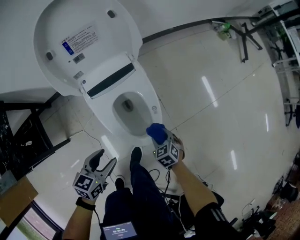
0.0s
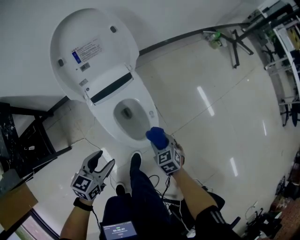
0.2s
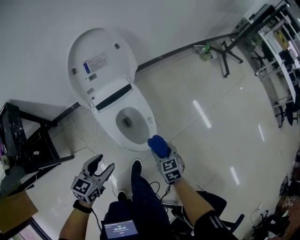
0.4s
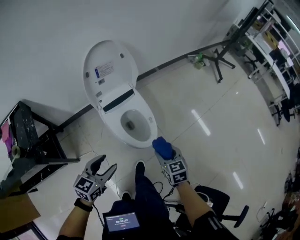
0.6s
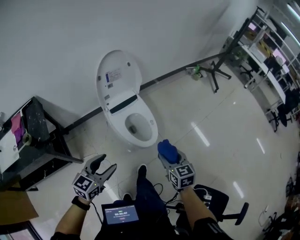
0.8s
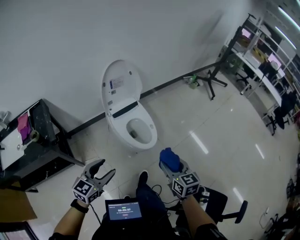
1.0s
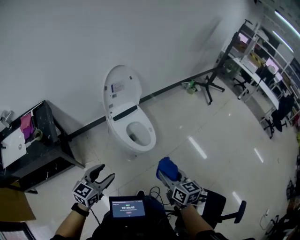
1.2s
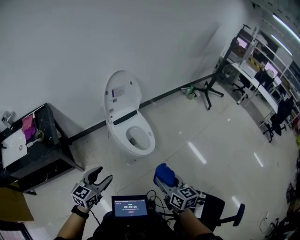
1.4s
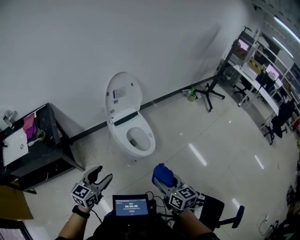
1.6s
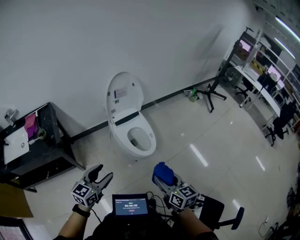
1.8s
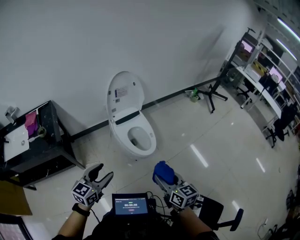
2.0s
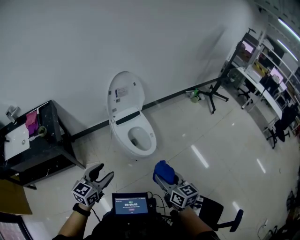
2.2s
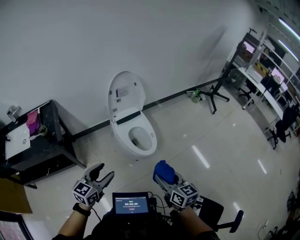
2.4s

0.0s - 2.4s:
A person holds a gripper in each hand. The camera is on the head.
0.0s - 1.2s: Both grippers travel together upward and backward, approximately 60 cm. The right gripper points its fingers approximately 40 degrees further upward. The left gripper changes its angle by approximately 30 degrees.
1.2s - 2.4s: There are only small adjustments of the grippers.

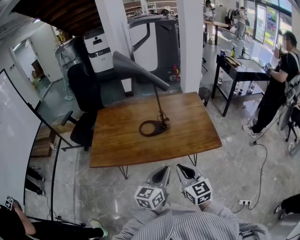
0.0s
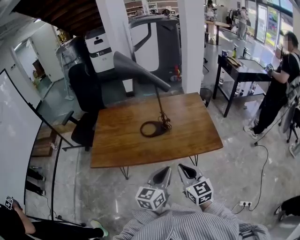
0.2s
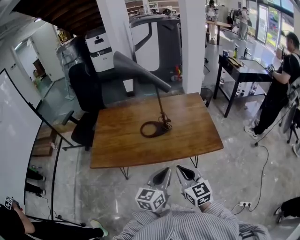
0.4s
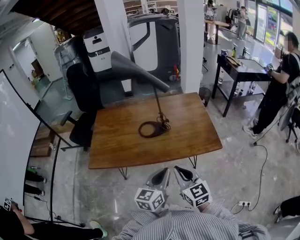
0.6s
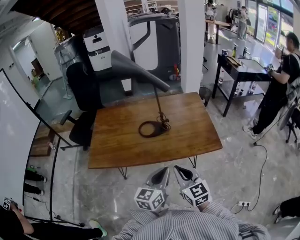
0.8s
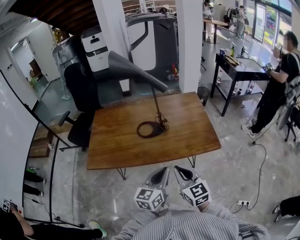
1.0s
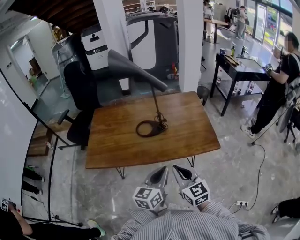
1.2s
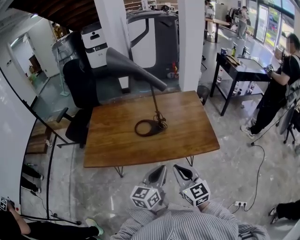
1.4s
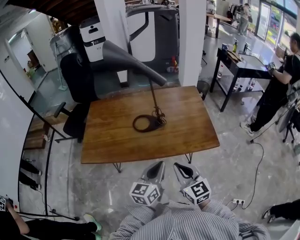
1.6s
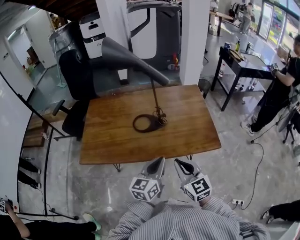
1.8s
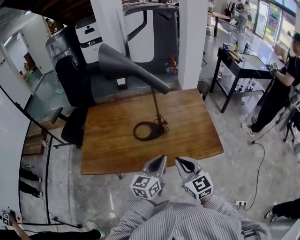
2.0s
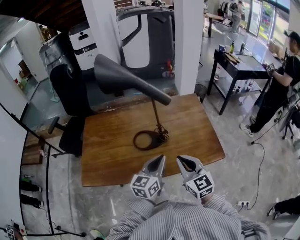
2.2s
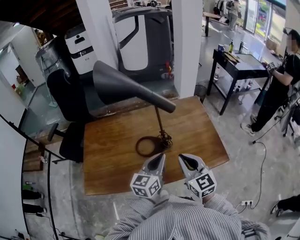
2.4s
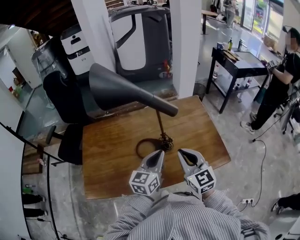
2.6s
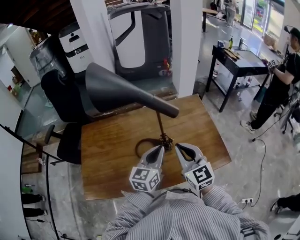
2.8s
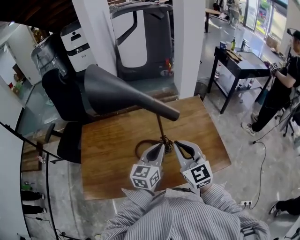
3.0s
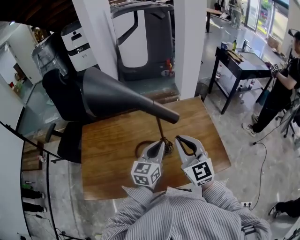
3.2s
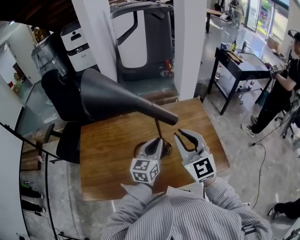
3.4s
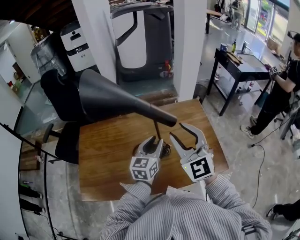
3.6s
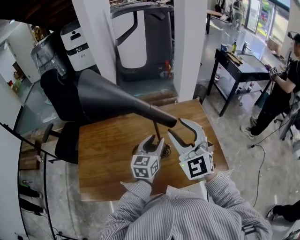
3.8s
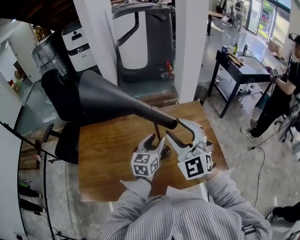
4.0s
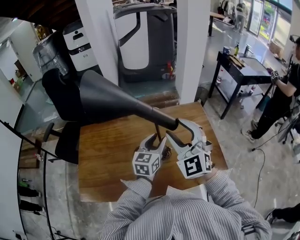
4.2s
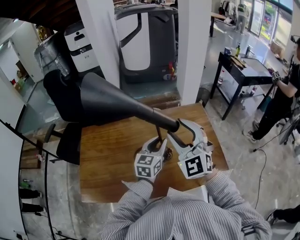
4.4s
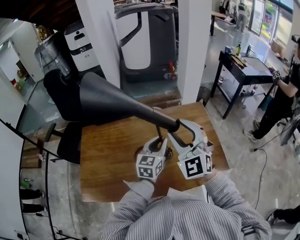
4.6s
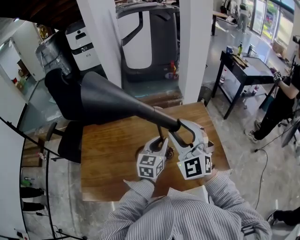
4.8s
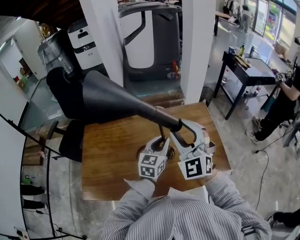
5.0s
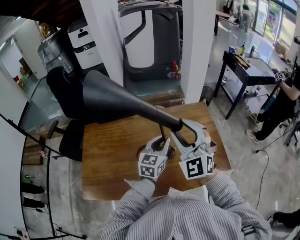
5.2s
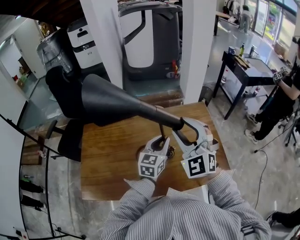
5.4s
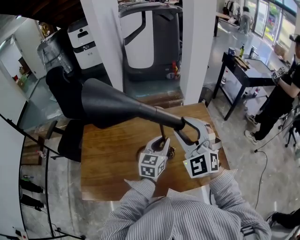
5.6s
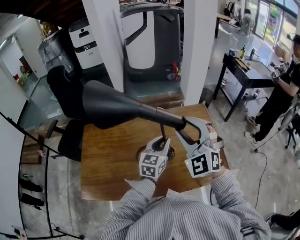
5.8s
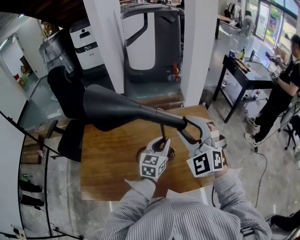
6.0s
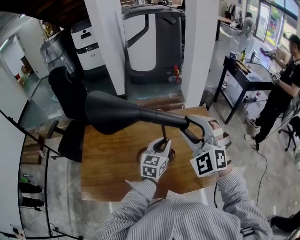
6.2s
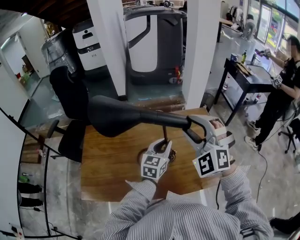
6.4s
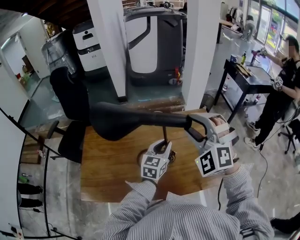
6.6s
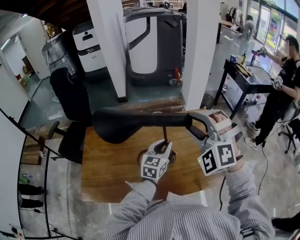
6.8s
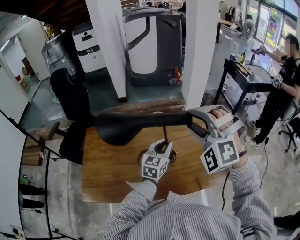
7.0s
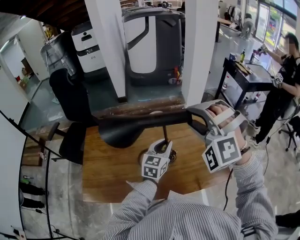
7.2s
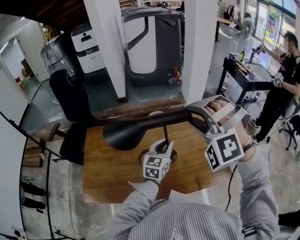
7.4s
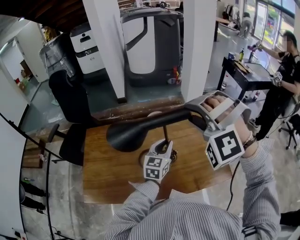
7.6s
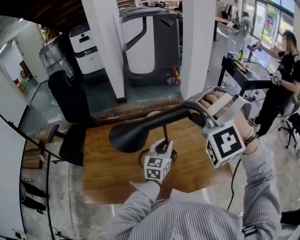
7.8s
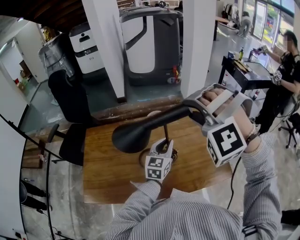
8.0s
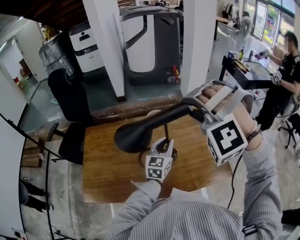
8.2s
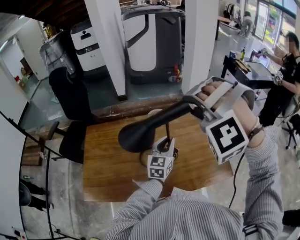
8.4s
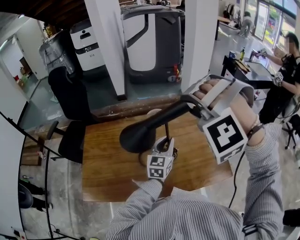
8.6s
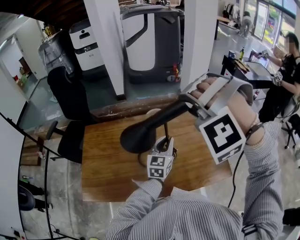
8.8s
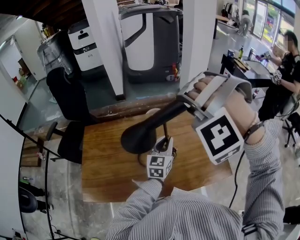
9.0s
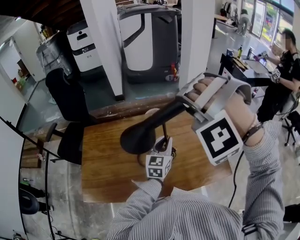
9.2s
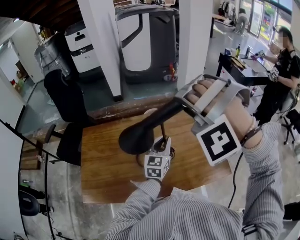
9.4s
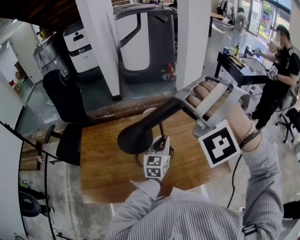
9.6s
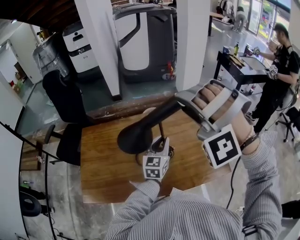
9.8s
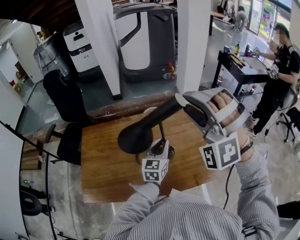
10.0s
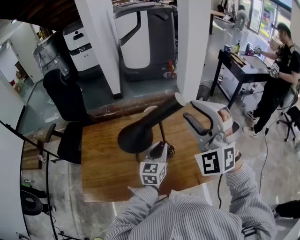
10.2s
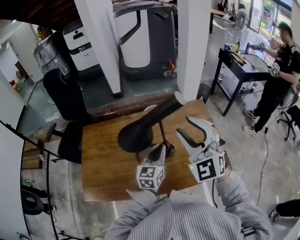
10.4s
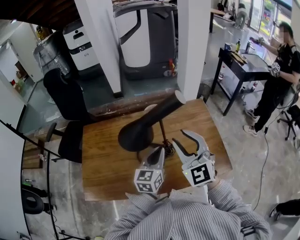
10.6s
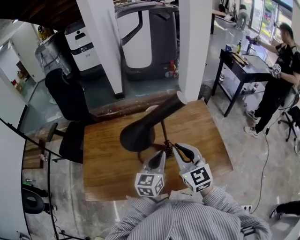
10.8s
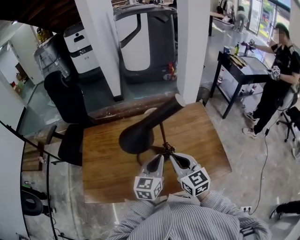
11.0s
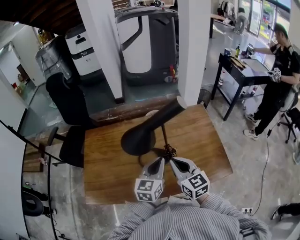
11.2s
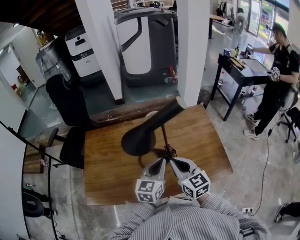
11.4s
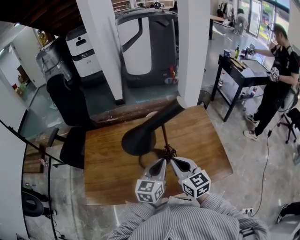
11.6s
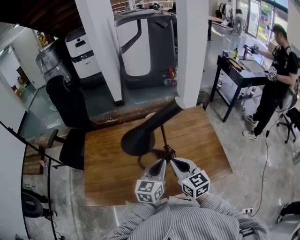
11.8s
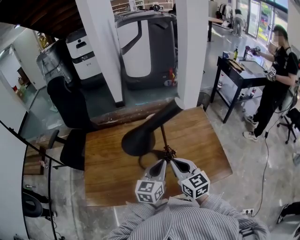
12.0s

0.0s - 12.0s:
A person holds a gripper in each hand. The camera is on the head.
0.0s - 1.6s: The grippers make only small movements.
1.6s - 3.0s: Both grippers move forward, approximately 25 cm.
3.0s - 4.4s: The left gripper shifts approximately 10 cm forward, and opens, while the right gripper shifts roughly 10 cm upward and forward, turns by about 30 degrees, and opens up.
4.4s - 6.0s: The grippers stay close to where they were, moving slightly.
6.0s - 7.6s: The right gripper goes some 5 cm upward, and twists about 40 degrees counterclockwise, seen from behind.
7.6s - 9.0s: There are only small adjustments of the grippers.
9.0s - 10.4s: The left gripper travels backward by approximately 5 cm, while the right gripper goes about 5 cm downward, and rolls clockwise, seen from behind, by approximately 70 degrees.
10.4s - 12.0s: The right gripper goes roughly 15 cm downward, twists some 50 degrees clockwise, seen from behind, and closes up, while the left gripper shifts approximately 5 cm backward.

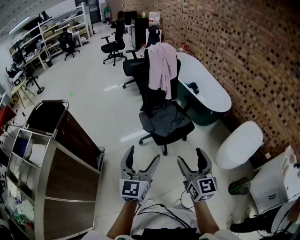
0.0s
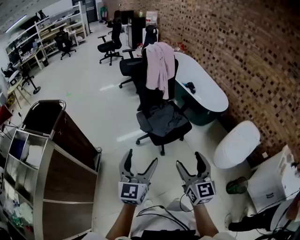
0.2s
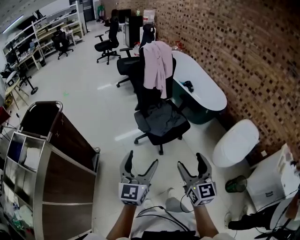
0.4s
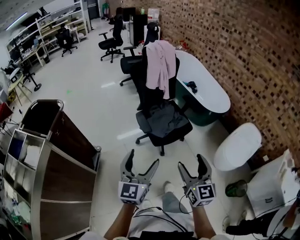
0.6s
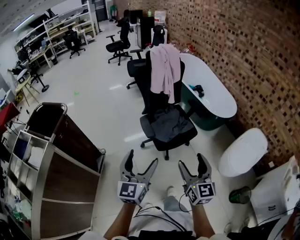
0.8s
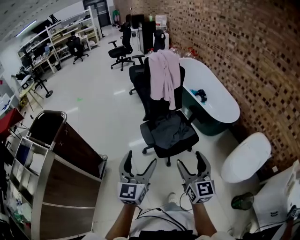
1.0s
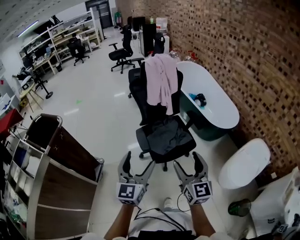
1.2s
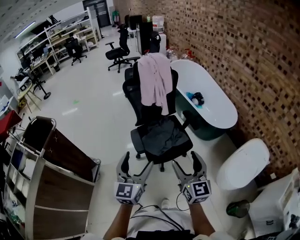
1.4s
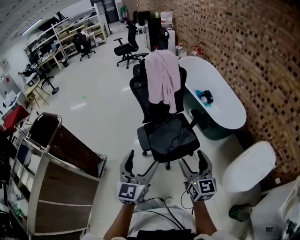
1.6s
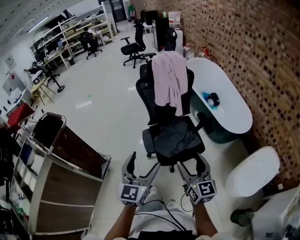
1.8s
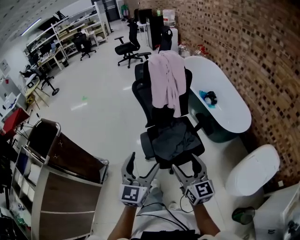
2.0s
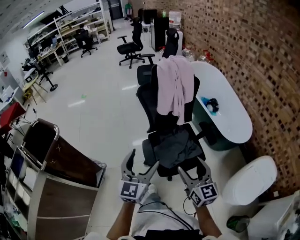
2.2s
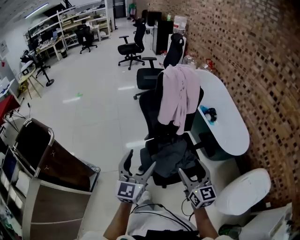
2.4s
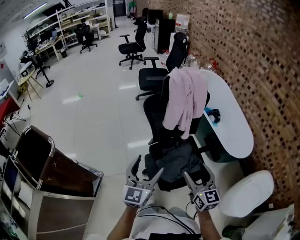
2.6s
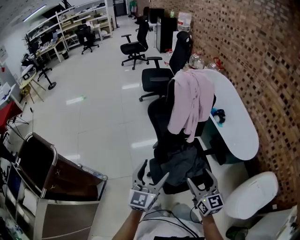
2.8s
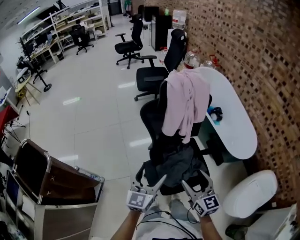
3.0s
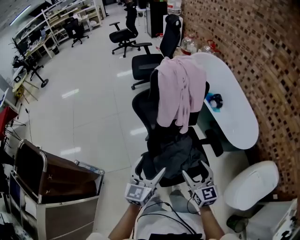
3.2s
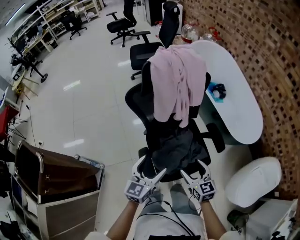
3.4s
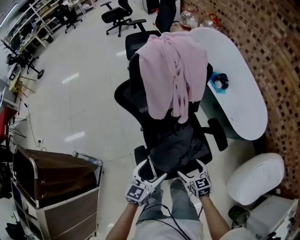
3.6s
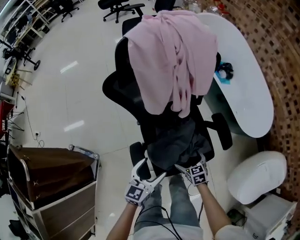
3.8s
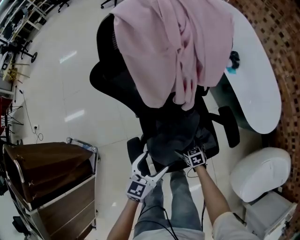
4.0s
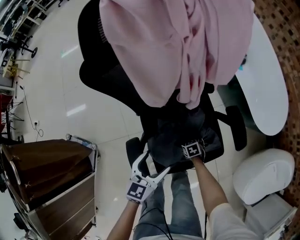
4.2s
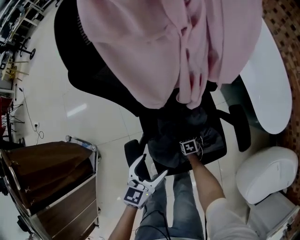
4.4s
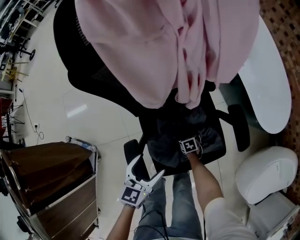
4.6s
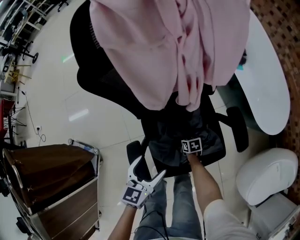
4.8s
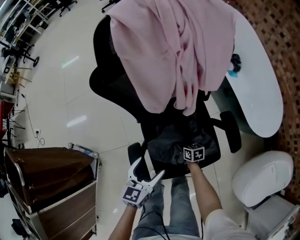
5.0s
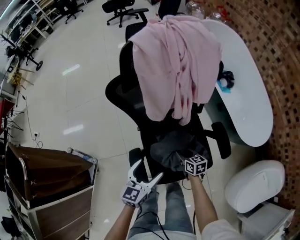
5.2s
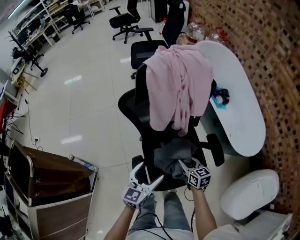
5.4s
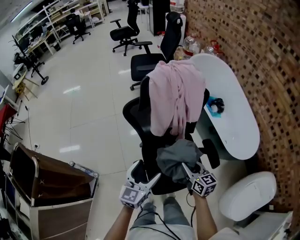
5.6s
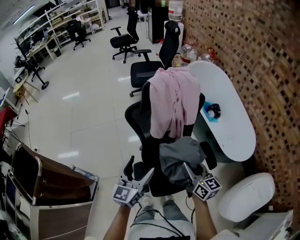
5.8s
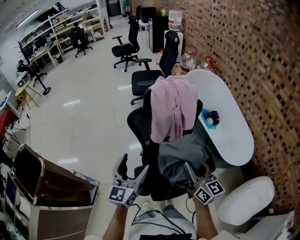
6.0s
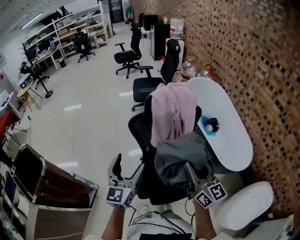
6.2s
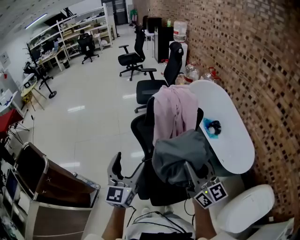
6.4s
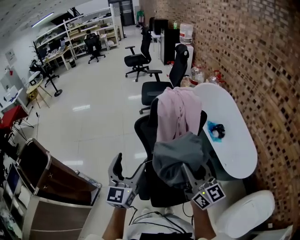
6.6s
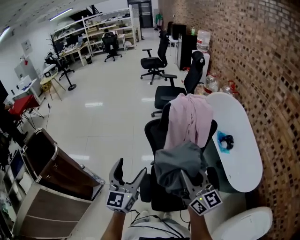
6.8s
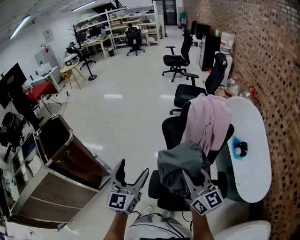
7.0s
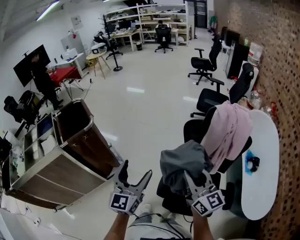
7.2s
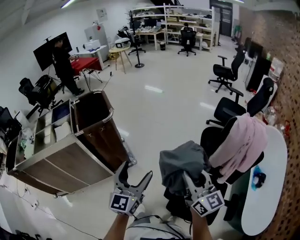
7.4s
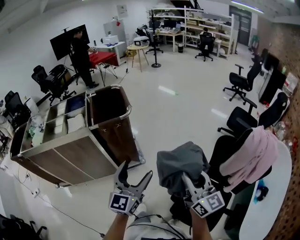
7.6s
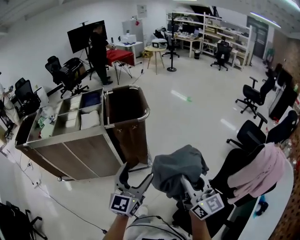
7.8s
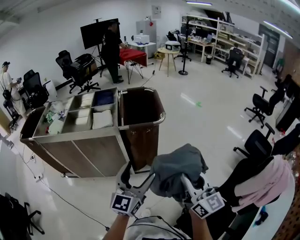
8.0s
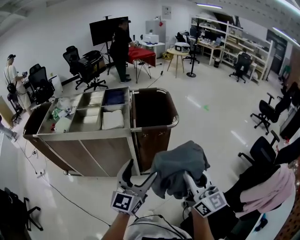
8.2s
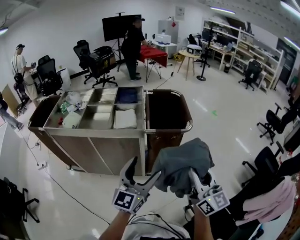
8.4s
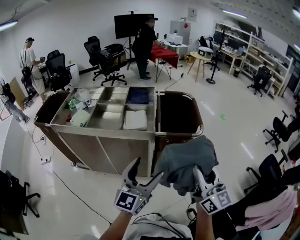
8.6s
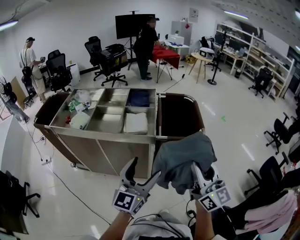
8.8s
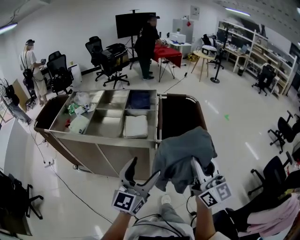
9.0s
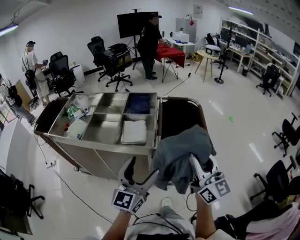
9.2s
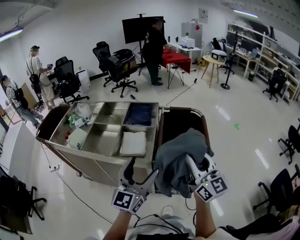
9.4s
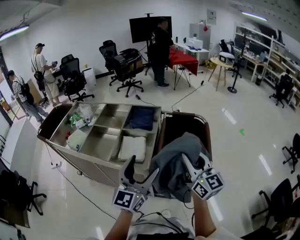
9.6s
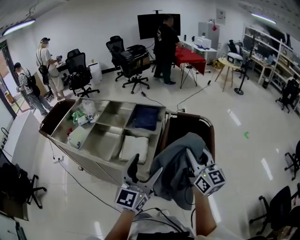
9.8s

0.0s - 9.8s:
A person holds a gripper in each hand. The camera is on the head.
0.0s - 1.4s: Both grippers travel together forward and to the right, some 20 cm.
1.4s - 2.8s: The grippers both shift forward by about 30 cm.
2.8s - 4.2s: The left gripper is displaced downward by about 30 cm, and swivels about 30 degrees; the right gripper is displaced downward by roughly 60 cm, tips its fingers downward by roughly 60 degrees, and opens its fingers.
4.2s - 5.6s: The right gripper heads upward, covering about 50 cm, angles its fingers upward, by roughly 50 degrees, and closes its fingers; the left gripper goes some 25 cm upward.
5.6s - 7.0s: The grippers both shift upward by some 20 cm. The left gripper changes its angle by some 40 degrees; the right gripper swivels approximately 30 degrees.
7.0s - 8.4s: The pair of grippers is taken about 50 cm. The right gripper swivels roughly 50 degrees, while the left gripper changes its angle by approximately 40 degrees.
8.4s - 9.8s: The two grippers go approximately 30 cm forward.
